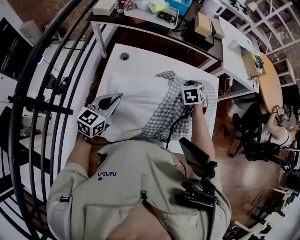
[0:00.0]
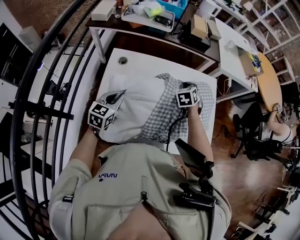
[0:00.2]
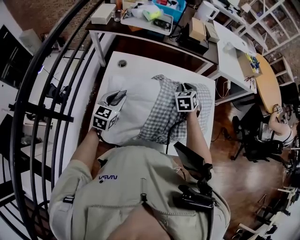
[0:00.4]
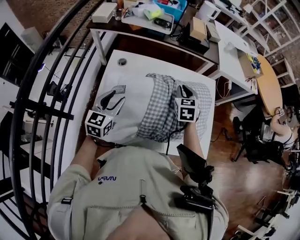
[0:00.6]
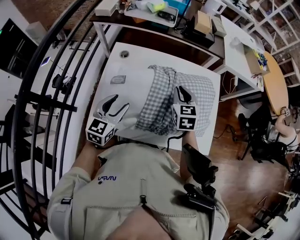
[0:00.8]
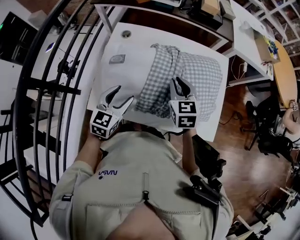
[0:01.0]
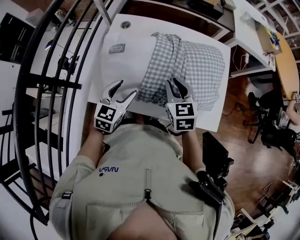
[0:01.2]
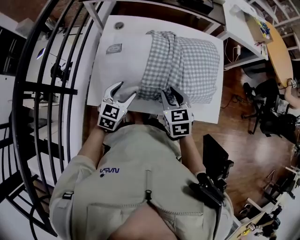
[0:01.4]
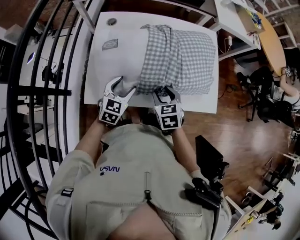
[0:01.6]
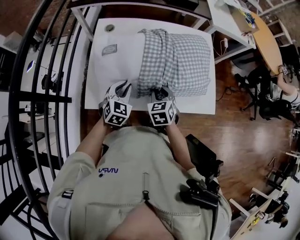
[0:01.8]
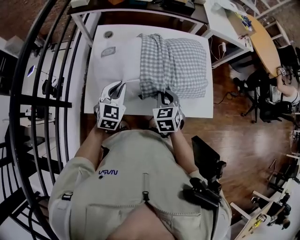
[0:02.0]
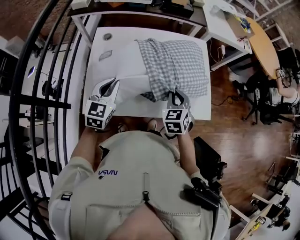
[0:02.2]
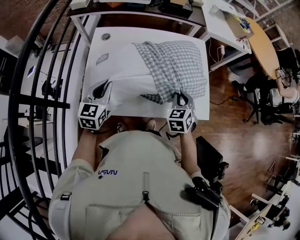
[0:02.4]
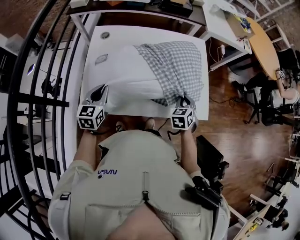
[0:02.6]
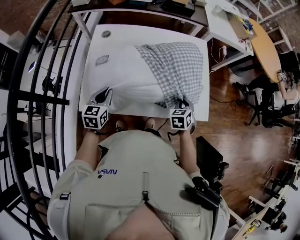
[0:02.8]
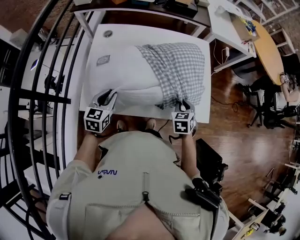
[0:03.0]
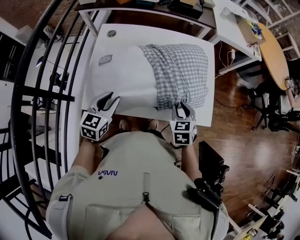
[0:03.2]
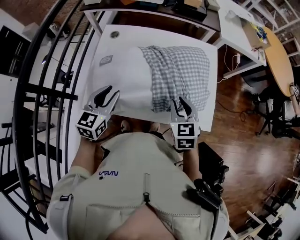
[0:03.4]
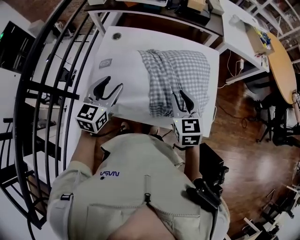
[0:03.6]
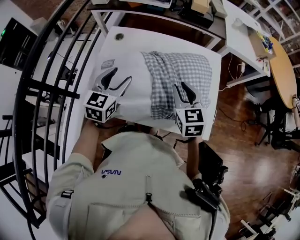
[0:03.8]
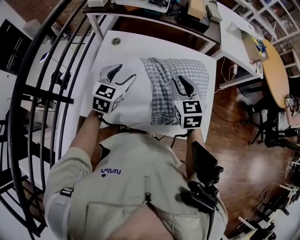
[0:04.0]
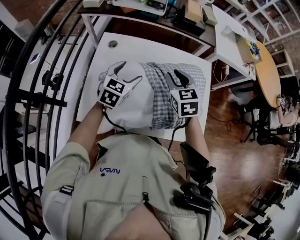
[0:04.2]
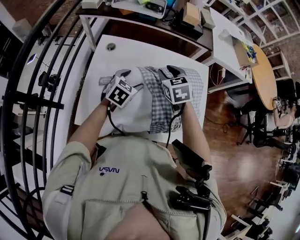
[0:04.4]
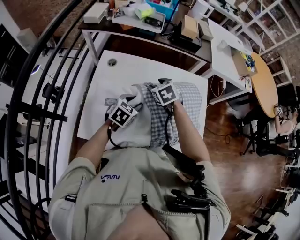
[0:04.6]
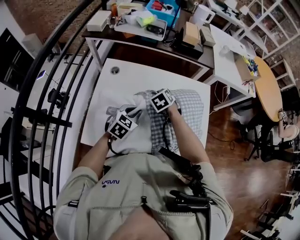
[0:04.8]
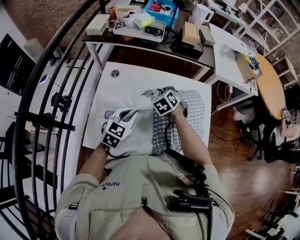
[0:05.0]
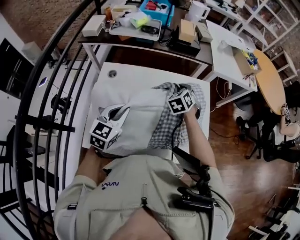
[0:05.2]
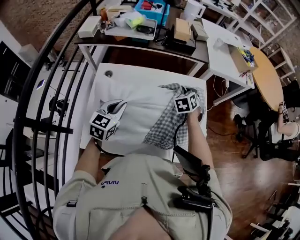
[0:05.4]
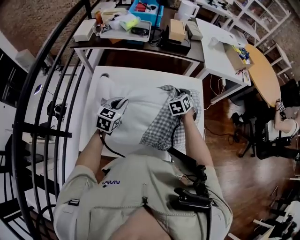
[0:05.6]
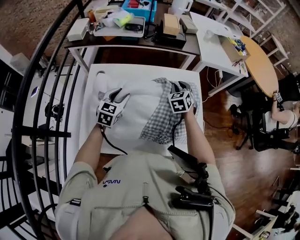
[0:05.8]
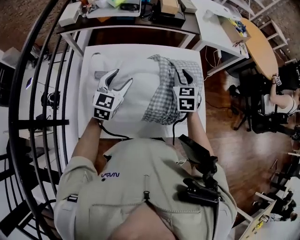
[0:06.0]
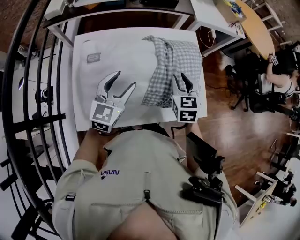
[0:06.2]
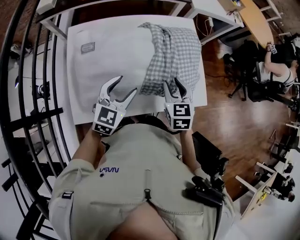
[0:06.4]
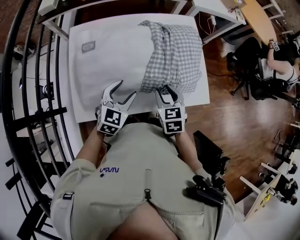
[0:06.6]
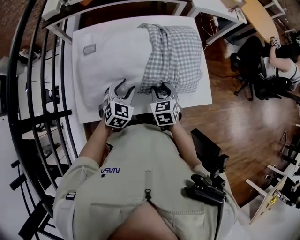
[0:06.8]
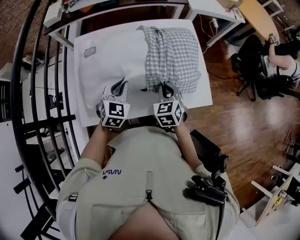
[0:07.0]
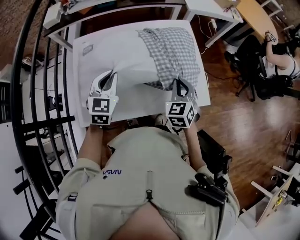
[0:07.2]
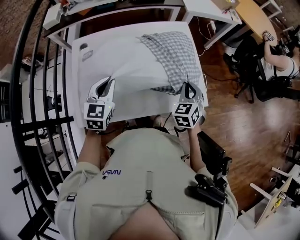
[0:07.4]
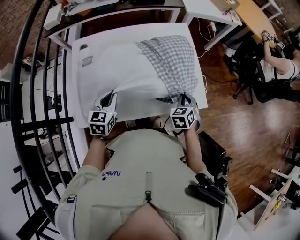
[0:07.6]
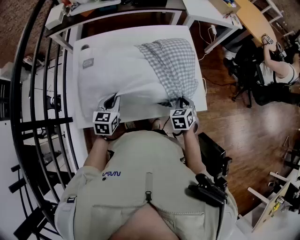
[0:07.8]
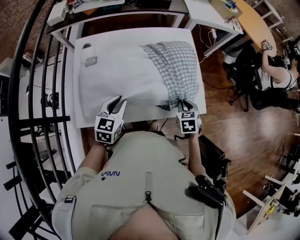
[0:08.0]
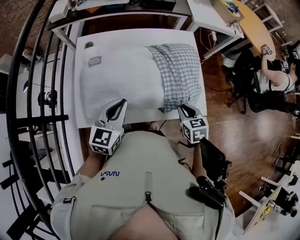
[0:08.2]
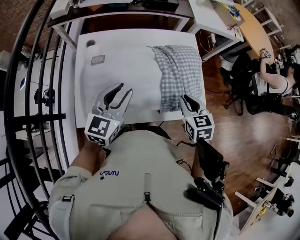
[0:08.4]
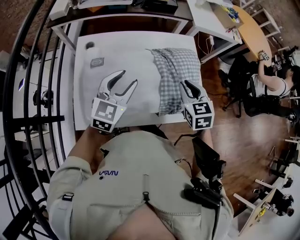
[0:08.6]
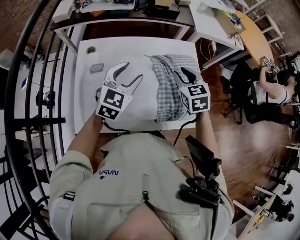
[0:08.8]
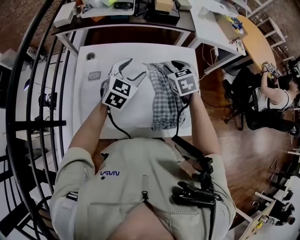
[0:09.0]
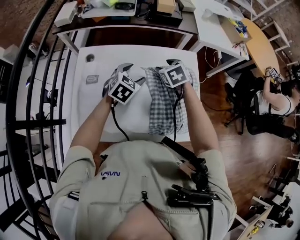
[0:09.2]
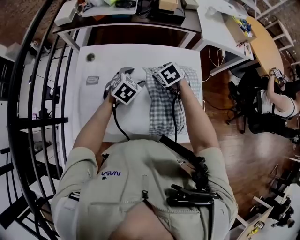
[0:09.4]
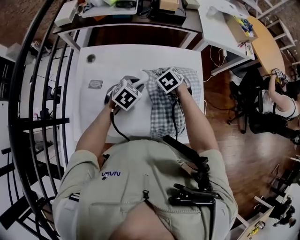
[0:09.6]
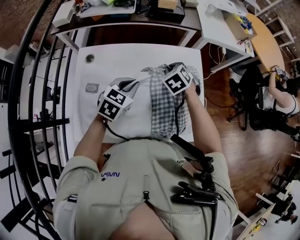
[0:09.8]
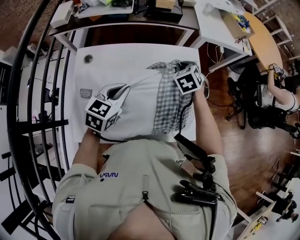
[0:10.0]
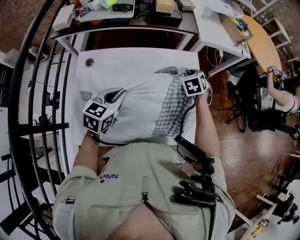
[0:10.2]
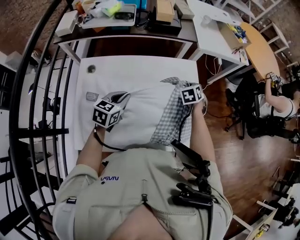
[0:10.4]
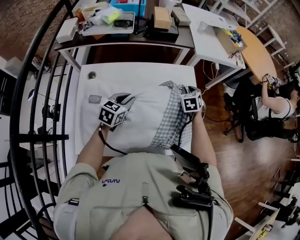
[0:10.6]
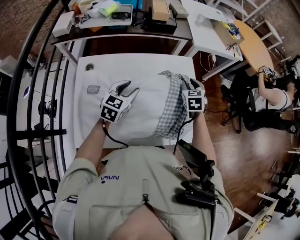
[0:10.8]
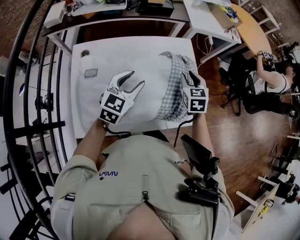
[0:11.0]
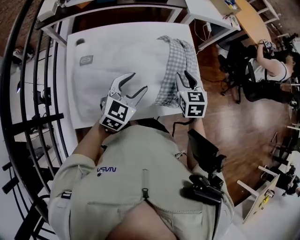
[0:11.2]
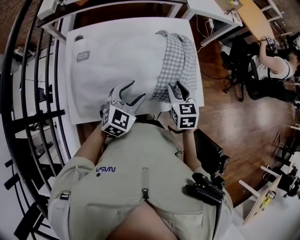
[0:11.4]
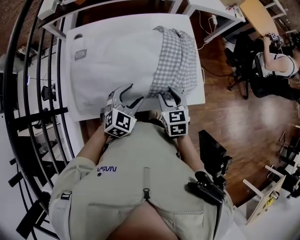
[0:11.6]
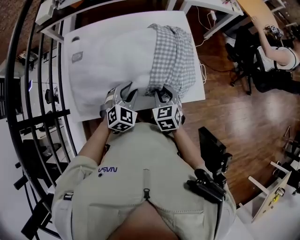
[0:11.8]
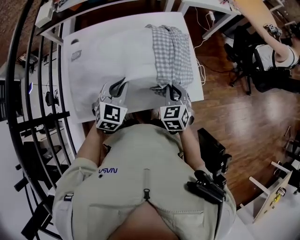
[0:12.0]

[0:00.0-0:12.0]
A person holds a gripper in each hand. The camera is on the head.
0:00.0 to 0:01.6: The right gripper moves backward, roughly 30 cm, rotates roughly 20 degrees, and opens up. The left gripper heads downward, to the right and backward, covering approximately 15 cm, and opens up.
0:01.6 to 0:03.0: The right gripper travels to the right by some 15 cm, and closes. Meanwhile the left gripper travels upward and back again, about 10 cm each way, and closes.
0:03.0 to 0:04.4: The left gripper travels forward and to the right by roughly 20 cm, and opens, while the right gripper heads forward, to the left and upward, covering about 30 cm, changes its angle by approximately 30 degrees, and opens.
0:04.4 to 0:06.0: The left gripper moves up and down over about 10 cm, changing direction 2 times, turns by approximately 20 degrees, and closes, then opens again. The right gripper shifts approximately 15 cm to the right, changes its angle by about 20 degrees, and closes, then opens again.
0:06.0 to 0:07.6: The right gripper goes about 30 cm backward, to the right and downward, turns by approximately 20 degrees, and closes. The left gripper moves forward and backward over roughly 15 cm, changing direction 2 times, and closes its fingers.
0:07.6 to 0:09.0: The left gripper heads forward and upward, covering roughly 20 cm, changes its angle by some 20 degrees, and opens up, while the right gripper goes approximately 30 cm forward, to the left and upward, swivels approximately 30 degrees, and opens.
0:09.0 to 0:10.4: The right gripper moves to the right, downward and forward, some 20 cm, swivels about 20 degrees, and closes its fingers, while the left gripper swings up and down, approximately 10 cm each way, with 2 reversals, turns by approximately 20 degrees, and closes its fingers.
0:10.4 to 0:12.0: The left gripper moves backward and to the right, some 15 cm, swivels about 30 degrees, and opens, then closes once more, while the right gripper travels backward by about 30 cm, and opens, then closes once more.

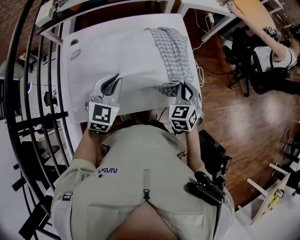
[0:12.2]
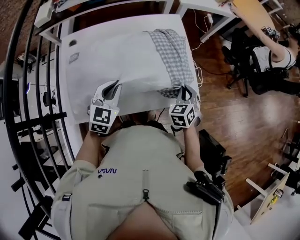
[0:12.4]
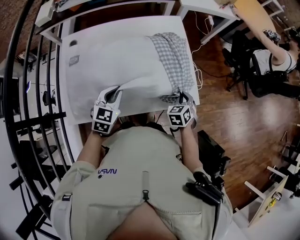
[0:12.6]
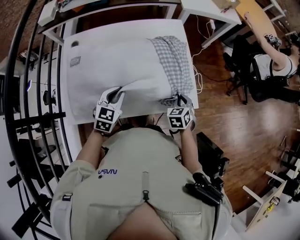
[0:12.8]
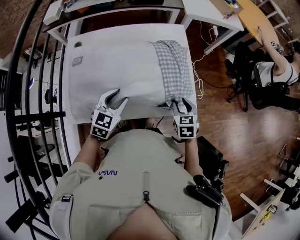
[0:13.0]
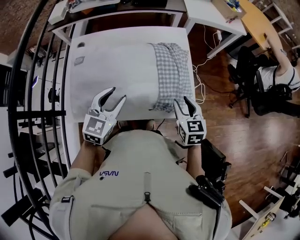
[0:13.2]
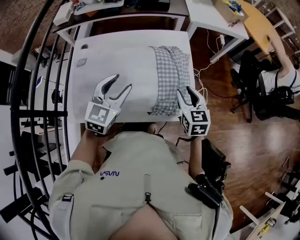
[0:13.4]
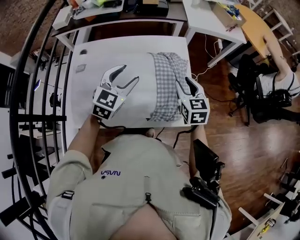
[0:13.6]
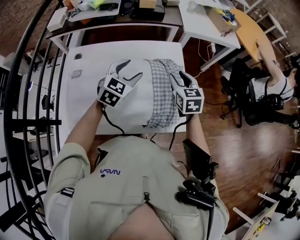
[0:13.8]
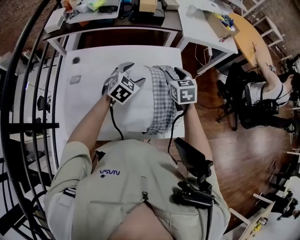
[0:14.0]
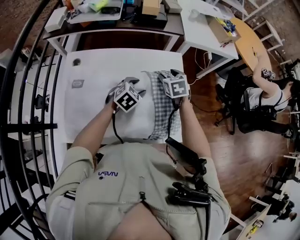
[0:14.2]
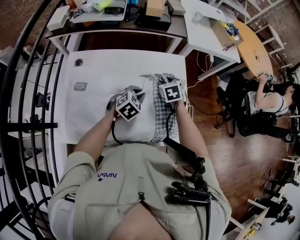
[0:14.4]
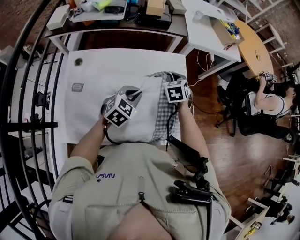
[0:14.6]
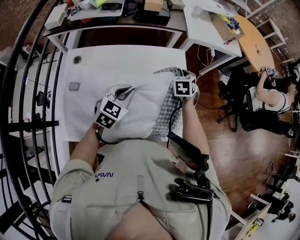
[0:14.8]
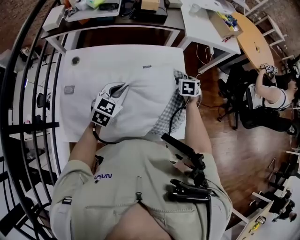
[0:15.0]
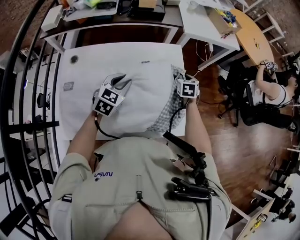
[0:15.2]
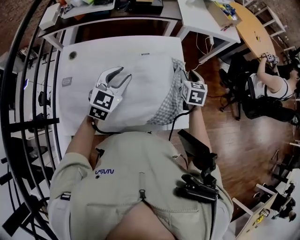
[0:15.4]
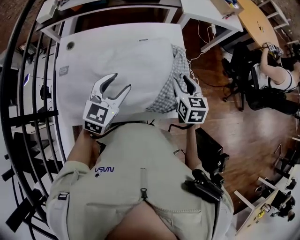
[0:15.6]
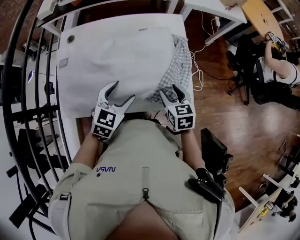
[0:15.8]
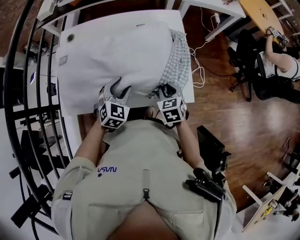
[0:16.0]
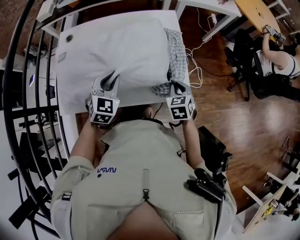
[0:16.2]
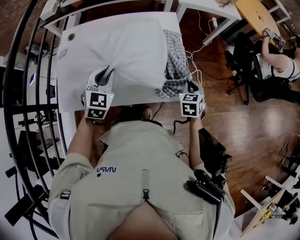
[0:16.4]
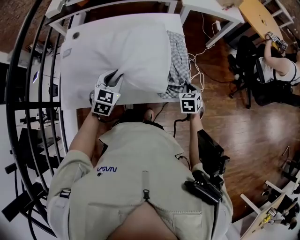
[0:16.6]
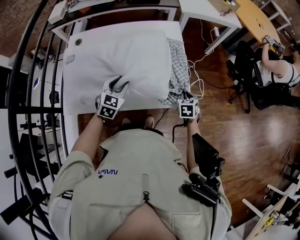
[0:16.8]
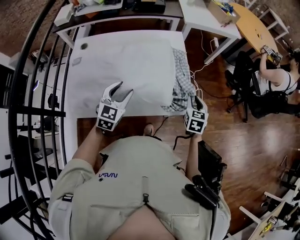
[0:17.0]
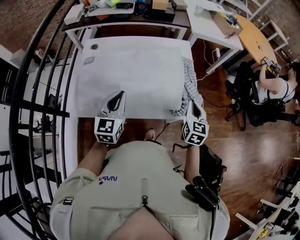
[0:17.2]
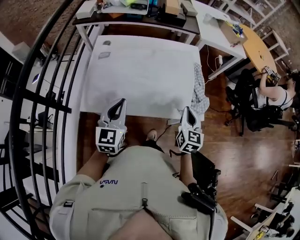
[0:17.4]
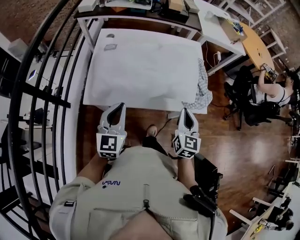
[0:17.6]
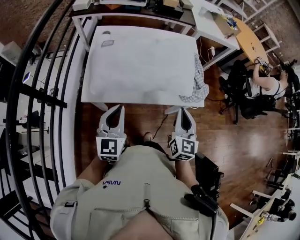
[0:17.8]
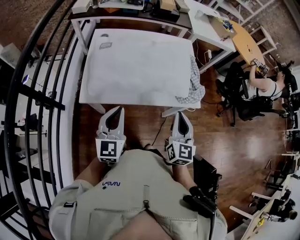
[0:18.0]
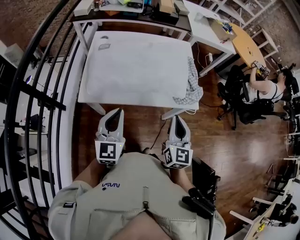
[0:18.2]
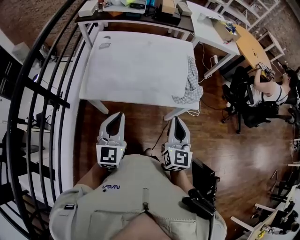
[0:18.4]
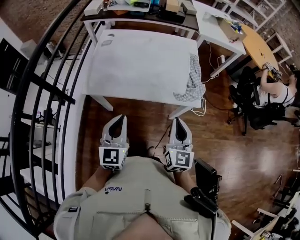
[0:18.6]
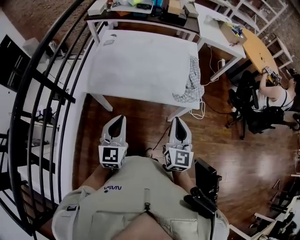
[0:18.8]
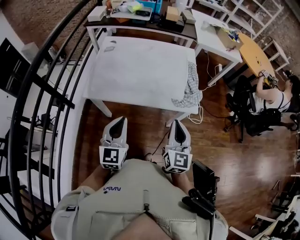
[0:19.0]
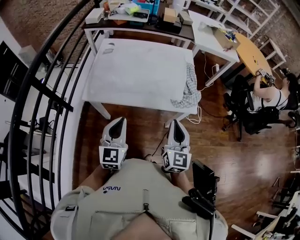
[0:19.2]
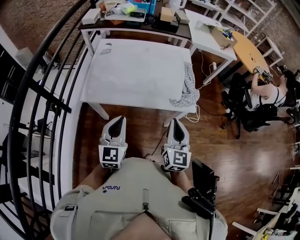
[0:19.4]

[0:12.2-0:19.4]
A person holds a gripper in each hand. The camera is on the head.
0:12.2 to 0:13.6: The grippers both shift forward by about 10 cm. The left gripper goes downward and returns, some 10 cm each way, and opens, while the right gripper reaches some 10 cm downward, then returns, turns by about 30 degrees, and opens up.
0:13.6 to 0:15.0: The right gripper is displaced forward and downward by approximately 20 cm, swivels approximately 30 degrees, and closes its fingers. Meanwhile the left gripper moves downward, about 5 cm, and closes up.
0:15.0 to 0:16.6: The right gripper goes approximately 25 cm backward, and opens, then closes once more. Meanwhile the left gripper travels backward and downward by roughly 15 cm, and opens, then closes again.
0:16.6 to 0:18.0: The right gripper moves backward, upward and to the left, approximately 35 cm, and tilts its fingers about 40 degrees upward. The left gripper goes about 30 cm backward, to the left and upward, changes its angle by roughly 30 degrees, and opens, then closes again.
0:18.0 to 0:19.4: The left gripper goes some 5 cm to the right.

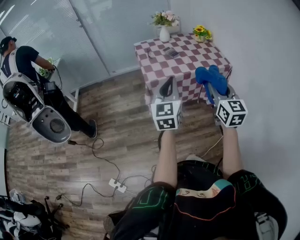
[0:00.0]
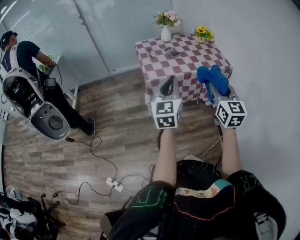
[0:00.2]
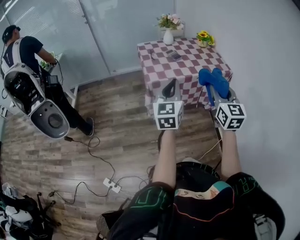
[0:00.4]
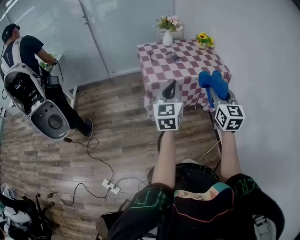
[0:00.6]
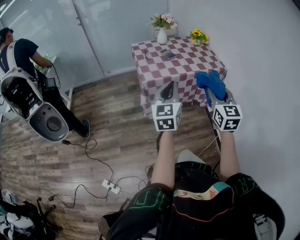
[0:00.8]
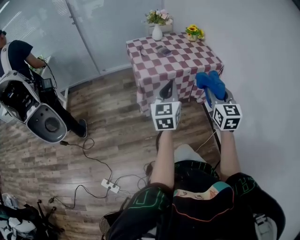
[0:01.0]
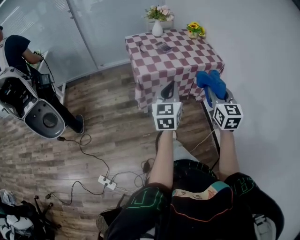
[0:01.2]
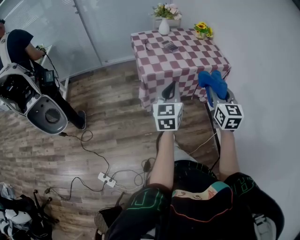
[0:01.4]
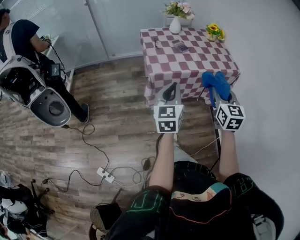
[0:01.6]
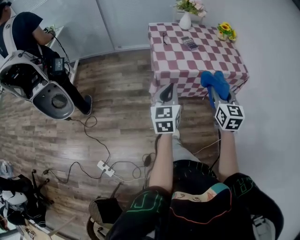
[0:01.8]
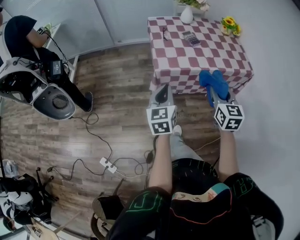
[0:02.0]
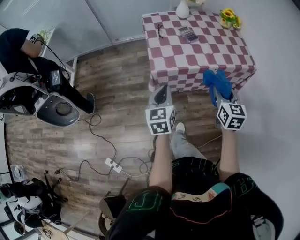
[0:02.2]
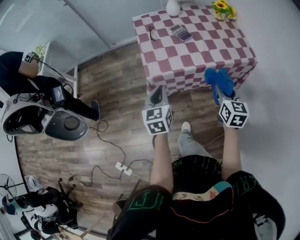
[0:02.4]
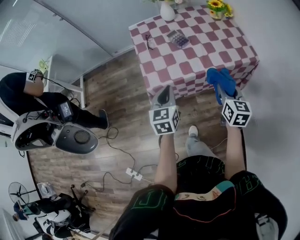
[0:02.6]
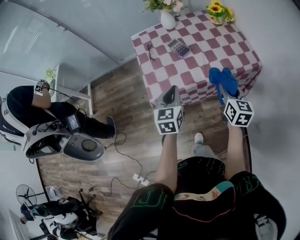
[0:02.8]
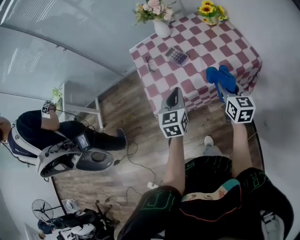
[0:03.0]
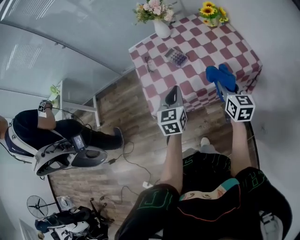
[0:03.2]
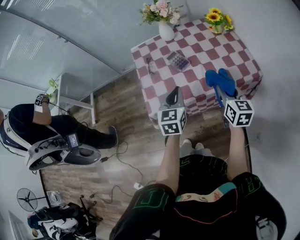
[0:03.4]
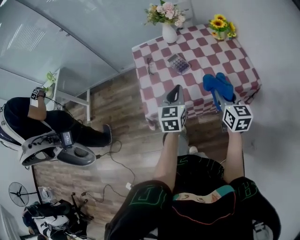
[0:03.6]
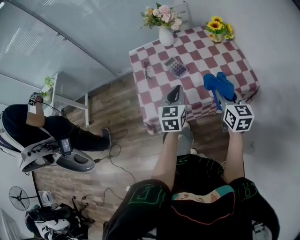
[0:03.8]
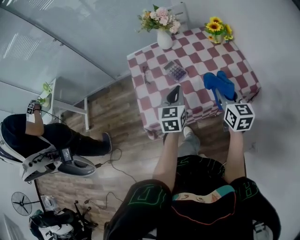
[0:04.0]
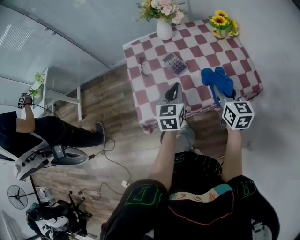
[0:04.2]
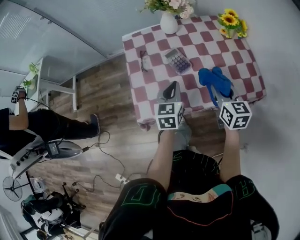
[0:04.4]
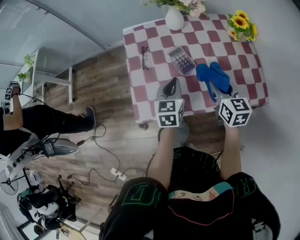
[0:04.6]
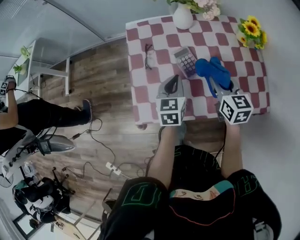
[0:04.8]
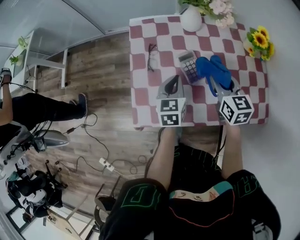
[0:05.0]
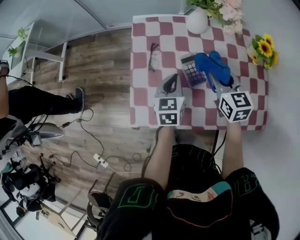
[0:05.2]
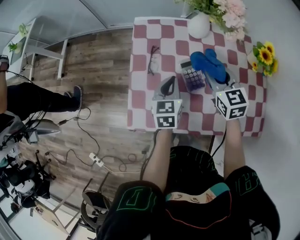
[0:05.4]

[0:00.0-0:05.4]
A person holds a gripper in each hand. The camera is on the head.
0:00.0 to 0:01.4: The left gripper travels downward by about 5 cm.
0:01.4 to 0:02.8: The left gripper shifts some 25 cm forward; the right gripper travels forward and downward by about 30 cm, and swivels some 30 degrees.
0:02.8 to 0:04.0: The left gripper shifts about 15 cm forward and to the right, while the right gripper goes about 10 cm forward.
0:04.0 to 0:05.4: The left gripper is displaced forward, downward and to the left by approximately 20 cm, and rotates roughly 30 degrees. The right gripper travels forward and to the left by some 30 cm, and rotates about 40 degrees.
